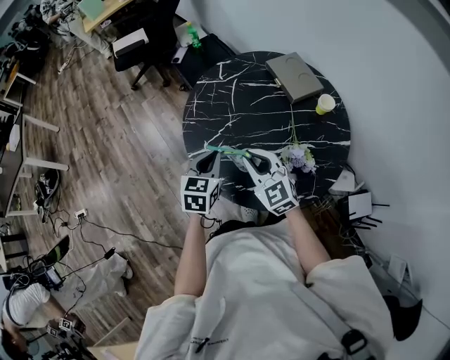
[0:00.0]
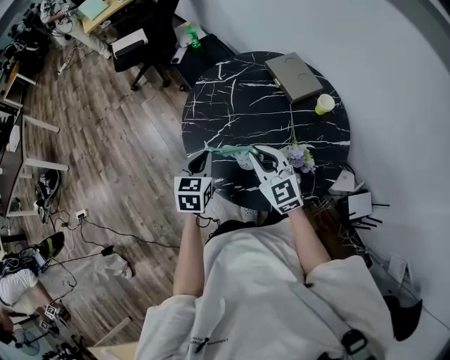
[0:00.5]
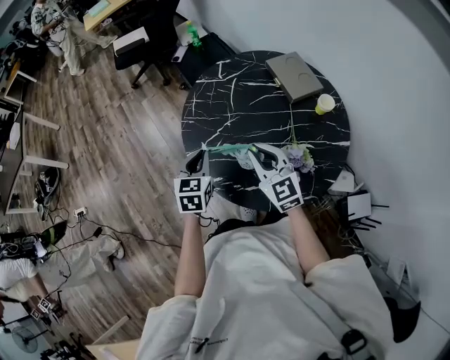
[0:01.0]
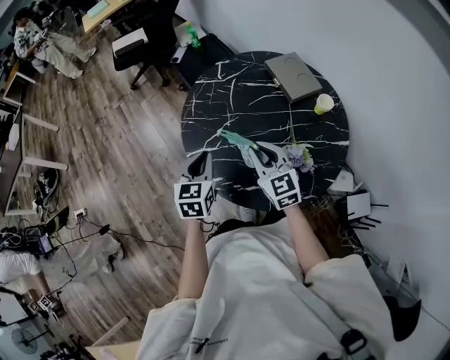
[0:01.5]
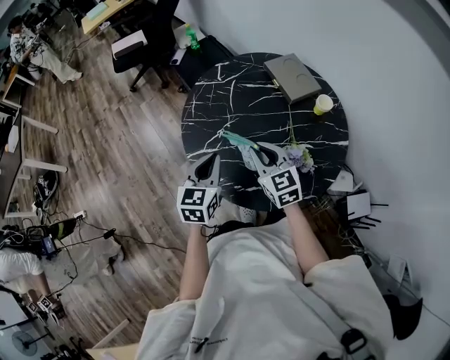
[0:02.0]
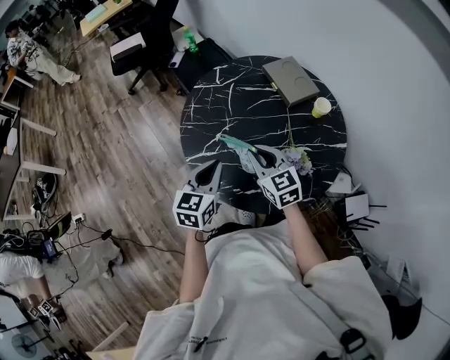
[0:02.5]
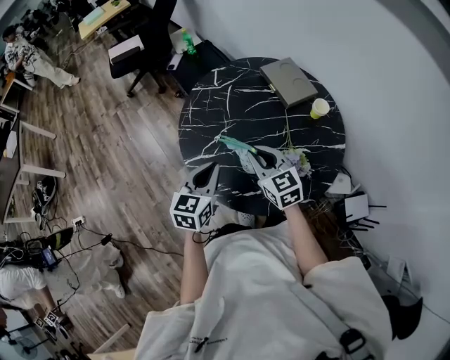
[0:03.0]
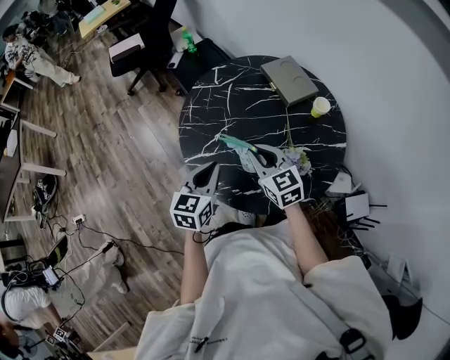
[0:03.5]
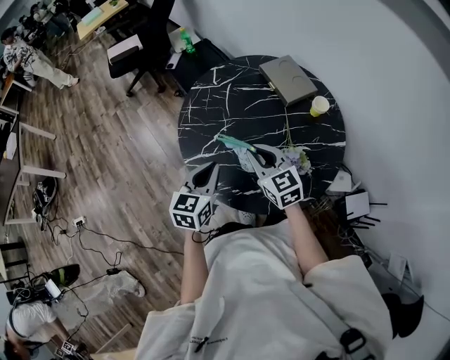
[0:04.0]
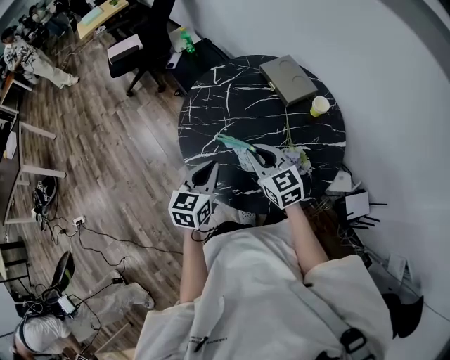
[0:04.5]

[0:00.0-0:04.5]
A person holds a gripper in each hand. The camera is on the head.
0:00.0 to 0:04.5: There are only small adjustments of the grippers.

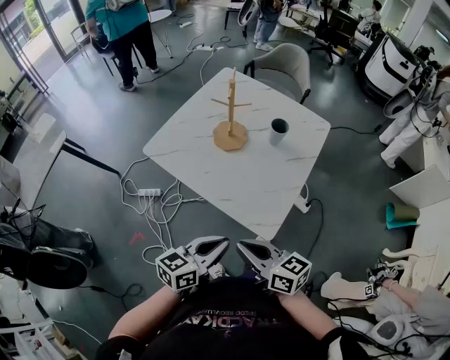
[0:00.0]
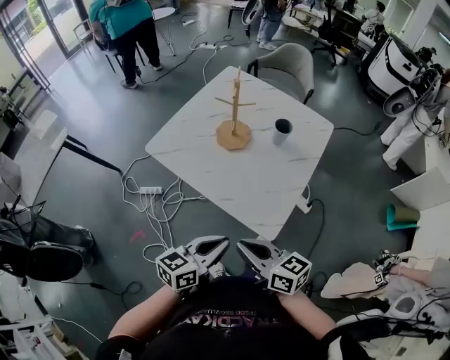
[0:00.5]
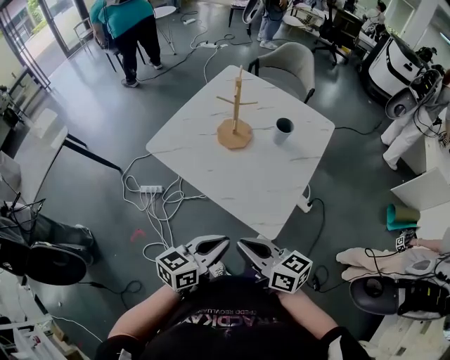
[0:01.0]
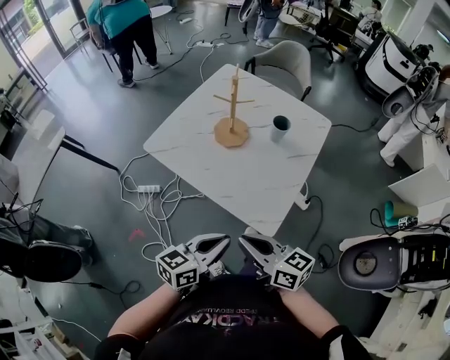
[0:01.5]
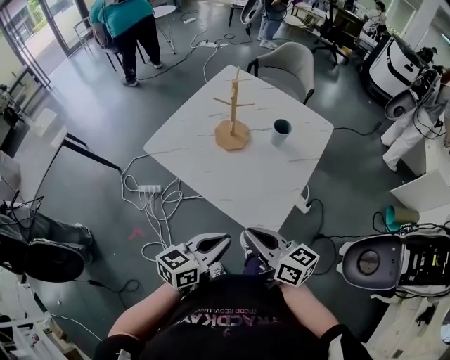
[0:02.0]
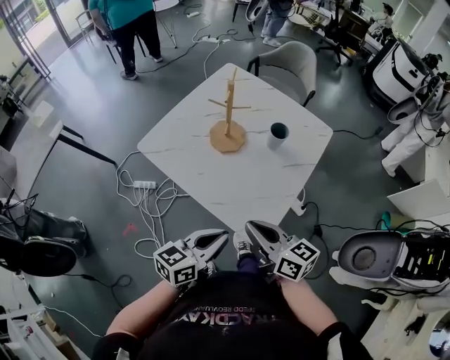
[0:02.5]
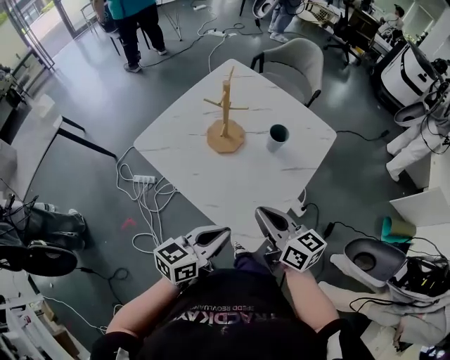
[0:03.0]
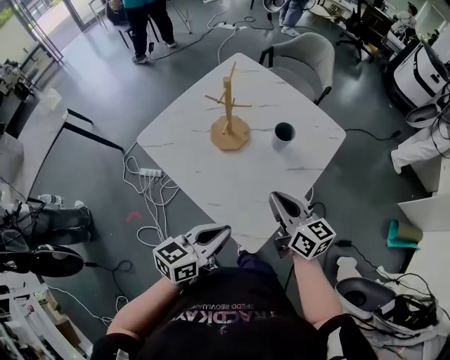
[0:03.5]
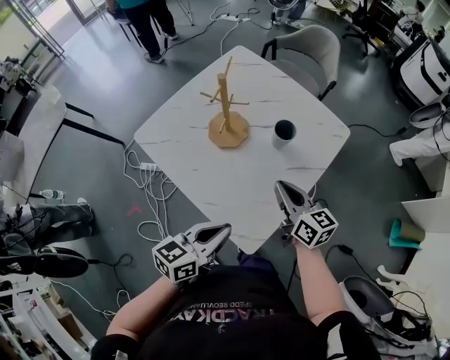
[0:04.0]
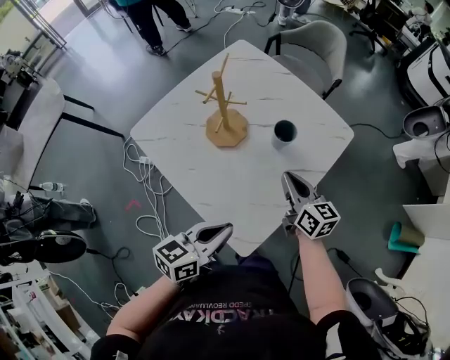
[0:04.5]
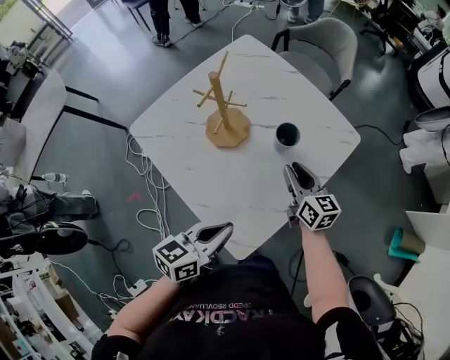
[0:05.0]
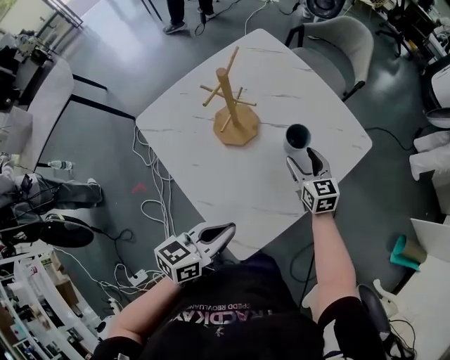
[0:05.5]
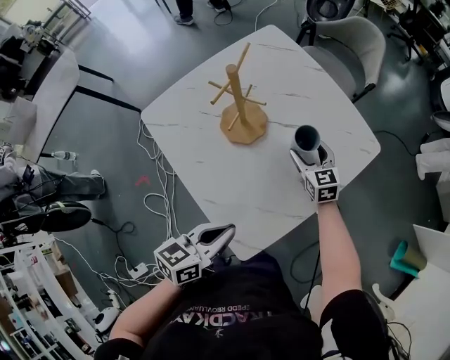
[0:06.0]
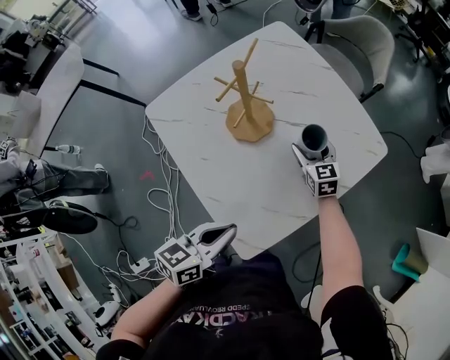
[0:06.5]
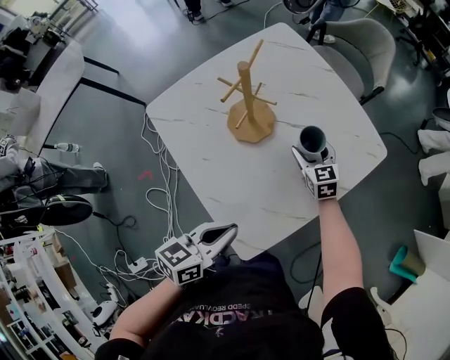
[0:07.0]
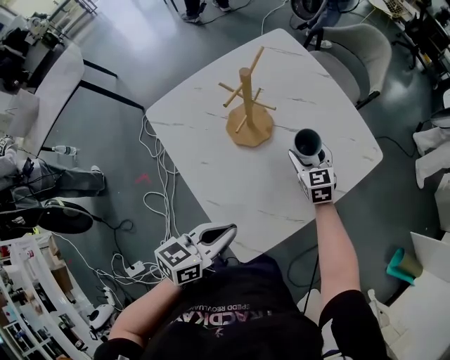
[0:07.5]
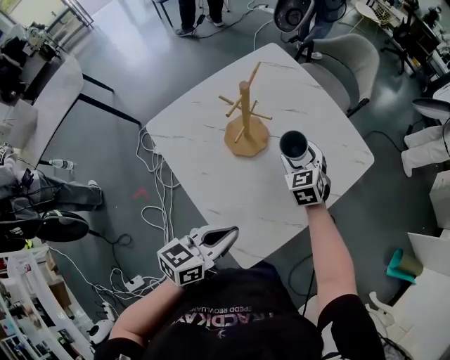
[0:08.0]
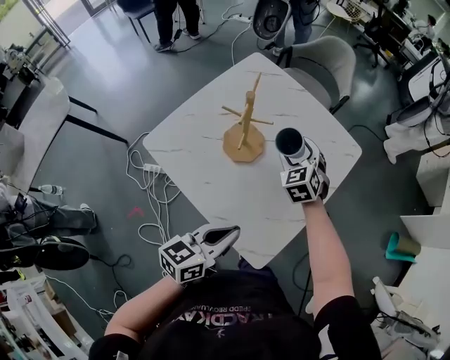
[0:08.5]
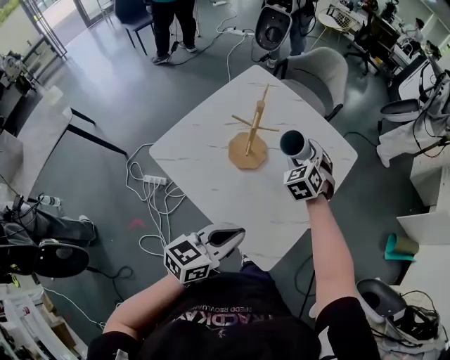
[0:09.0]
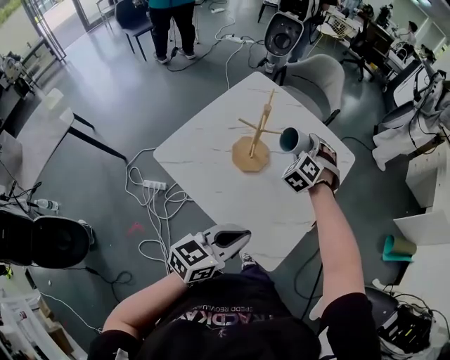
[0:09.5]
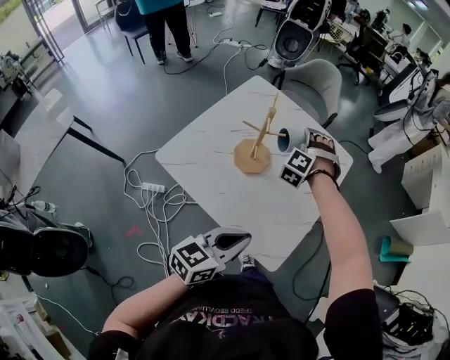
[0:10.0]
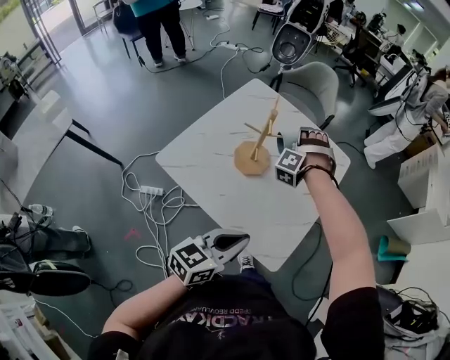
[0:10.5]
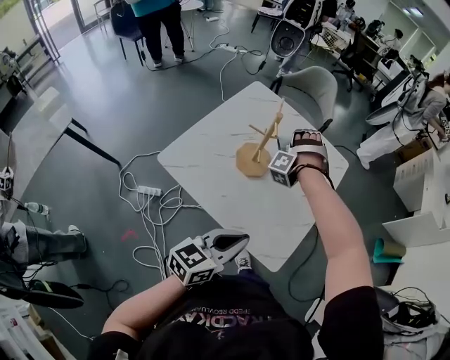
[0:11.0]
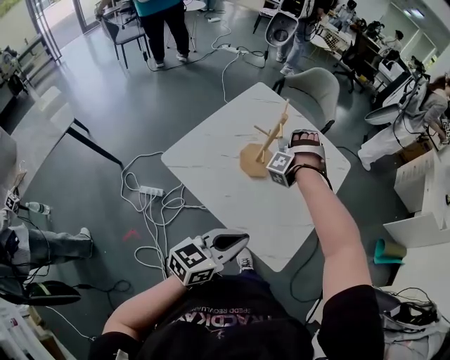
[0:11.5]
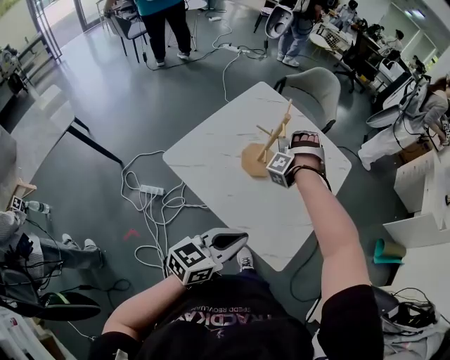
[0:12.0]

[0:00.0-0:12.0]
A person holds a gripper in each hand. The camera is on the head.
0:00.0 to 0:02.0: There are only small adjustments of the grippers.
0:02.0 to 0:04.0: The left gripper is displaced forward and to the right by about 15 cm. Meanwhile the right gripper is displaced forward and to the right by some 25 cm.
0:04.0 to 0:06.0: The left gripper changes place by about 5 cm. The right gripper is displaced forward and downward by some 25 cm, changes its angle by some 30 degrees, and opens up.
0:06.0 to 0:08.0: The right gripper shifts some 5 cm upward, and rotates about 20 degrees.
0:08.0 to 0:10.0: The left gripper ends up approximately 10 cm from where it was, and turns by about 20 degrees. Meanwhile the right gripper heads upward, covering about 10 cm, and swivels roughly 60 degrees.
0:10.0 to 0:12.0: The right gripper rotates about 30 degrees; the left gripper changes place by about 5 cm.

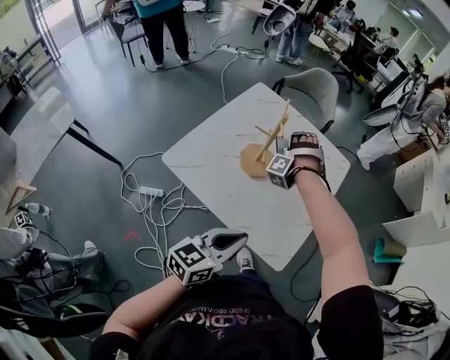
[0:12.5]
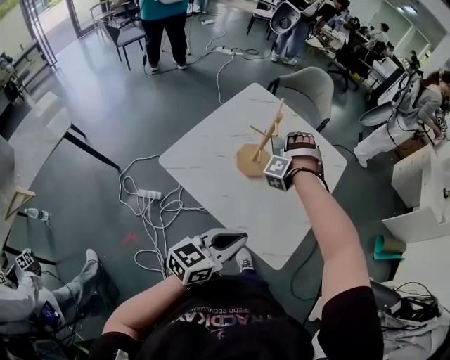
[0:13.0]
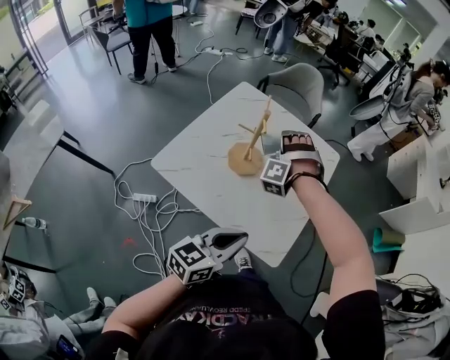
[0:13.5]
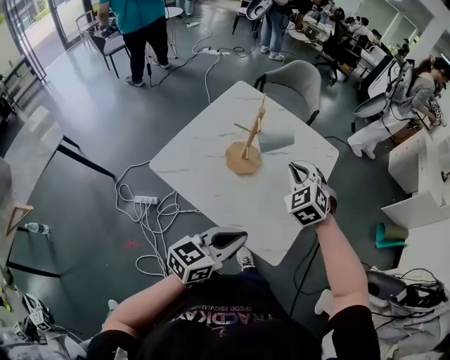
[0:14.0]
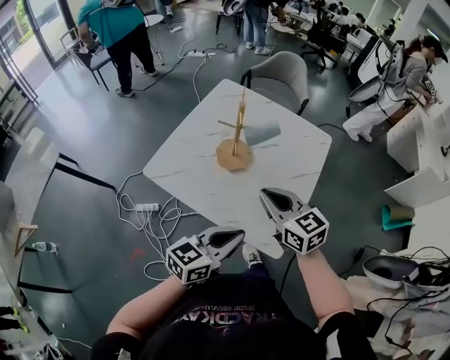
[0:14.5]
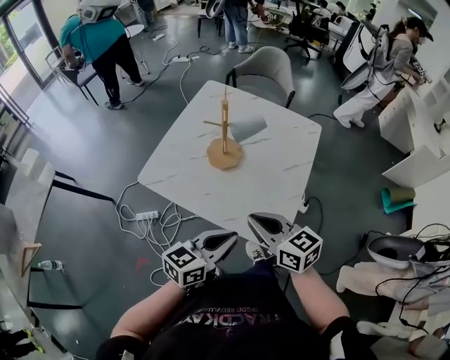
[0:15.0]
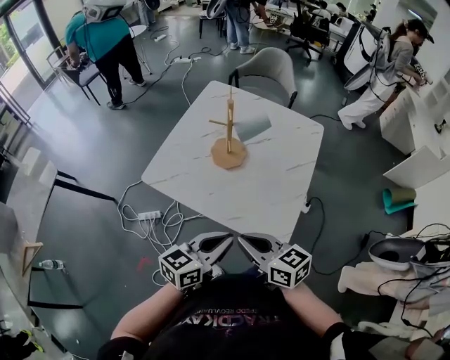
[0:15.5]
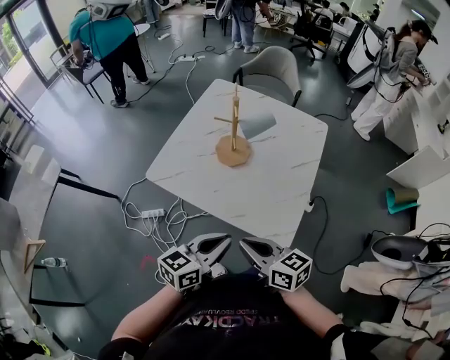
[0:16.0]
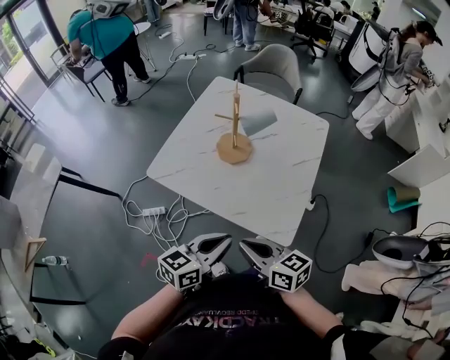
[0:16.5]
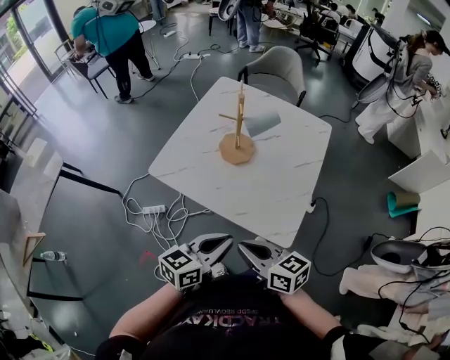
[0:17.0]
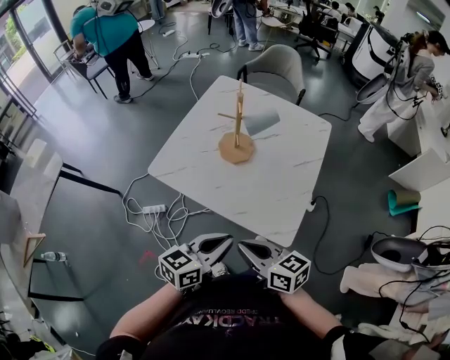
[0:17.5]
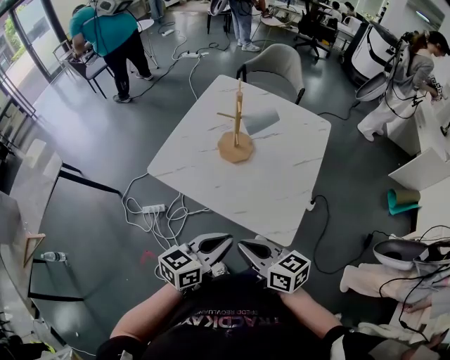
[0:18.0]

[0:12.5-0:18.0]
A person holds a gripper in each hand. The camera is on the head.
0:12.5 to 0:14.5: The right gripper moves roughly 25 cm, changes its angle by roughly 130 degrees, and closes.
0:14.5 to 0:16.0: The left gripper moves some 5 cm; the right gripper goes approximately 15 cm backward, and changes its angle by some 20 degrees.
0:16.0 to 0:18.0: There are only small adjustments of the grippers.

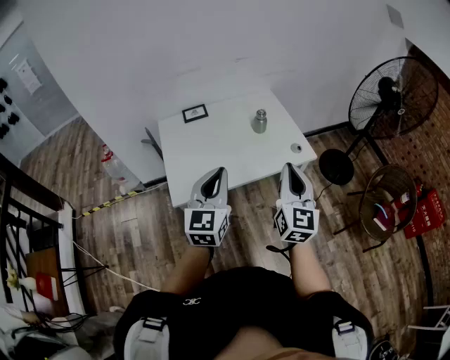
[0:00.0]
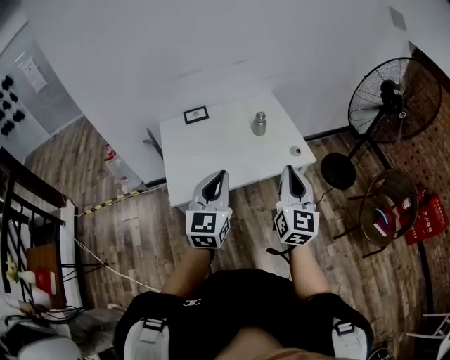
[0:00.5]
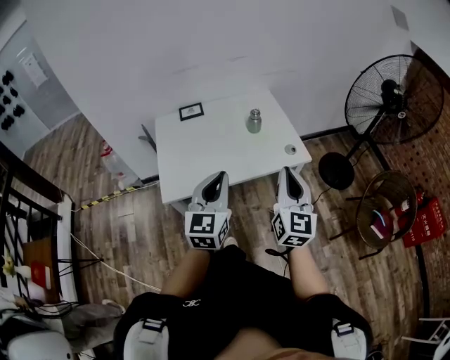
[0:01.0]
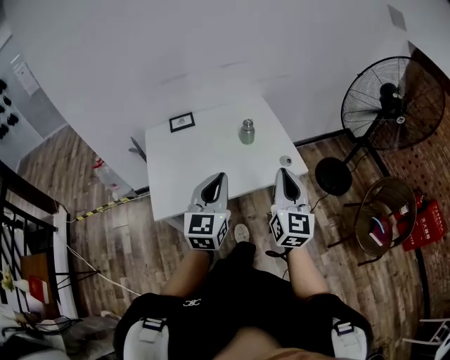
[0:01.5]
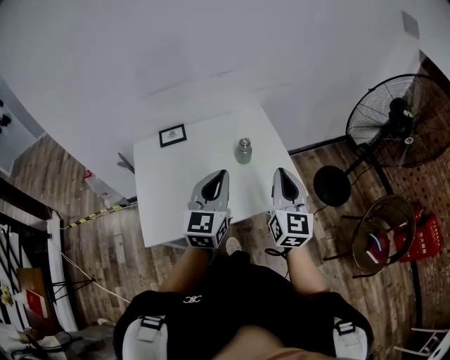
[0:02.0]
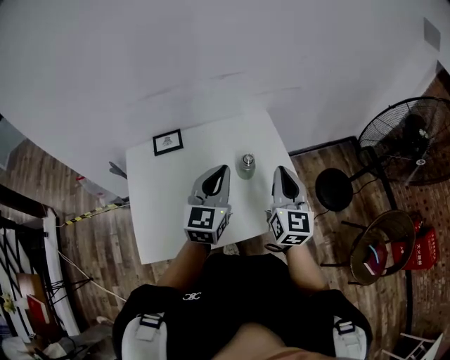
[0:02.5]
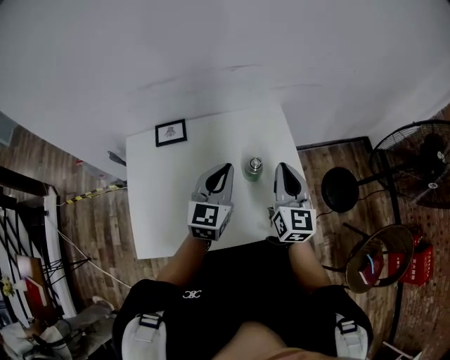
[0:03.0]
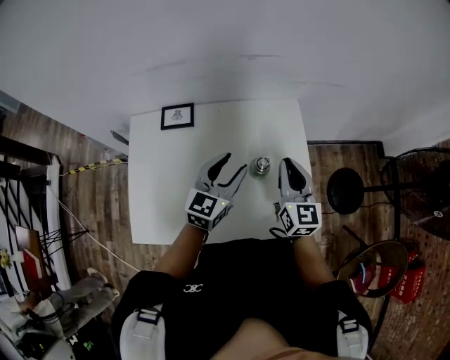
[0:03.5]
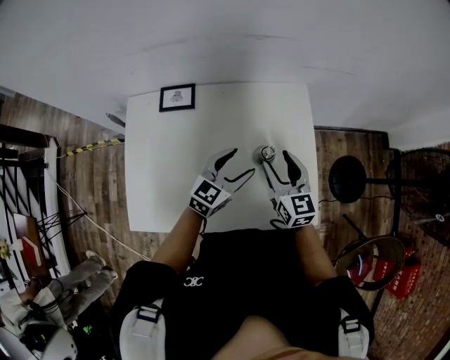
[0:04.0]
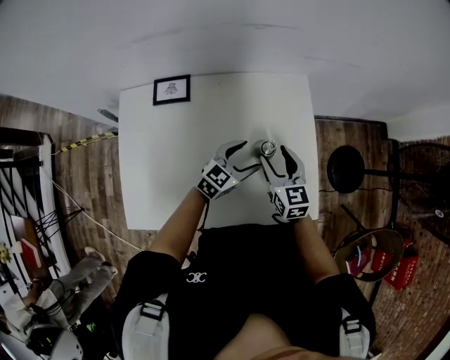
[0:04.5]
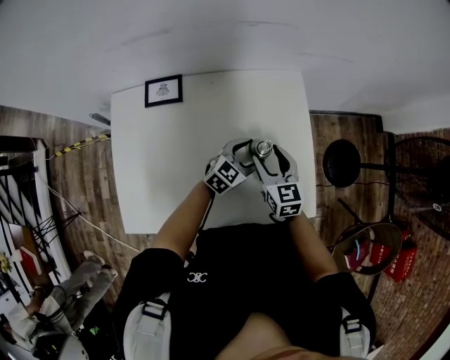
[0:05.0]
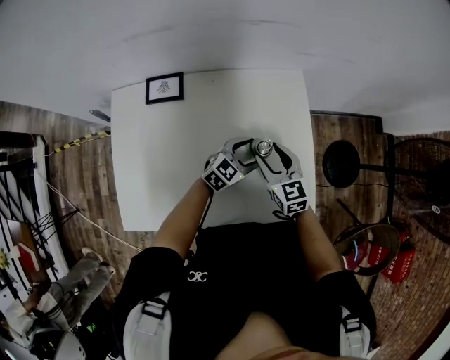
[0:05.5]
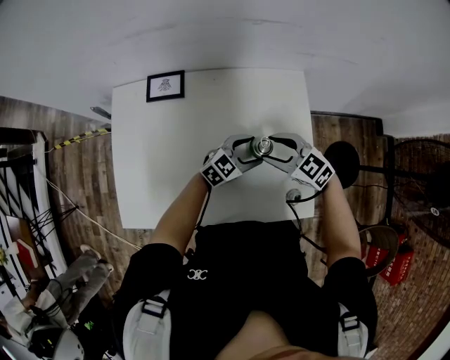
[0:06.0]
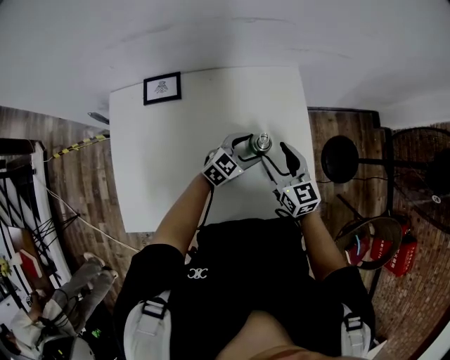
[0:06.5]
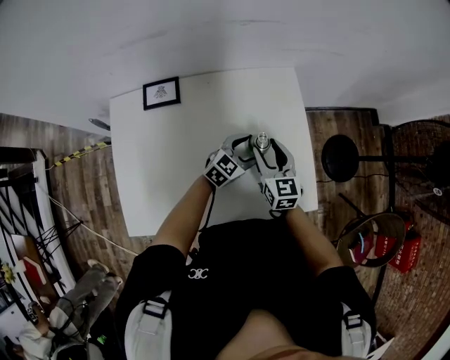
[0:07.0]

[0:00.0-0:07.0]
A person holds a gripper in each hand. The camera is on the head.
0:00.0 to 0:02.0: Both grippers move forward, some 20 cm.
0:02.0 to 0:03.5: The right gripper shifts roughly 25 cm forward, and turns by some 20 degrees. Meanwhile the left gripper goes some 25 cm forward and downward, and opens its fingers.
0:03.5 to 0:05.0: The right gripper heads downward, covering about 15 cm, changes its angle by approximately 20 degrees, and opens its fingers, while the left gripper is displaced downward and to the right by approximately 20 cm, changes its angle by some 30 degrees, and opens up.
